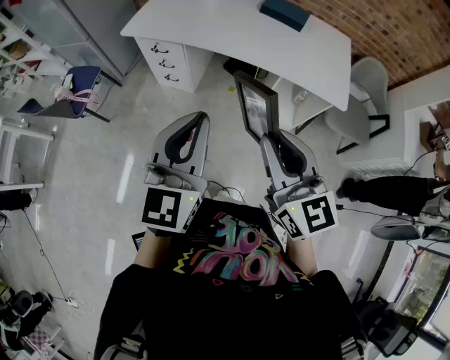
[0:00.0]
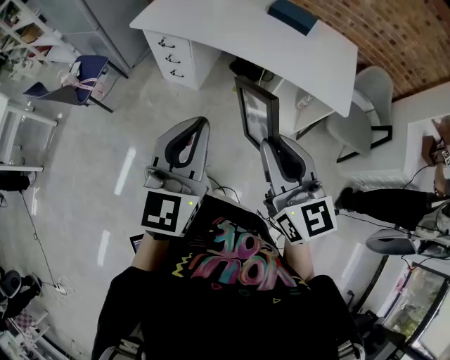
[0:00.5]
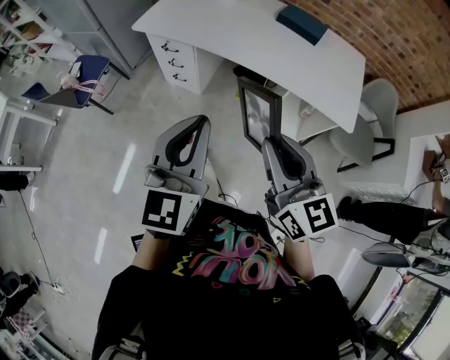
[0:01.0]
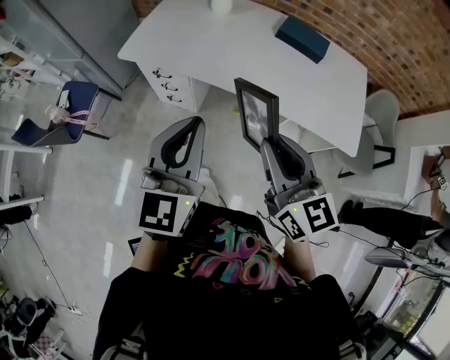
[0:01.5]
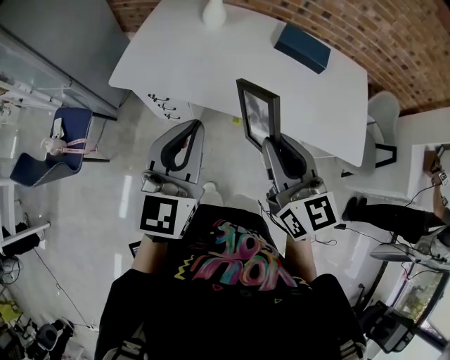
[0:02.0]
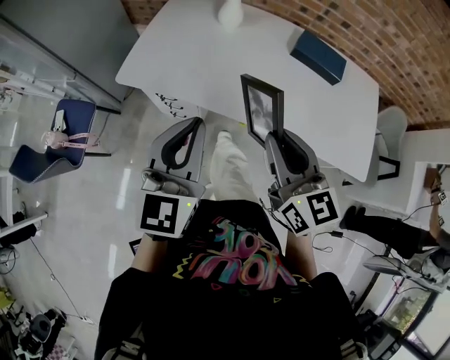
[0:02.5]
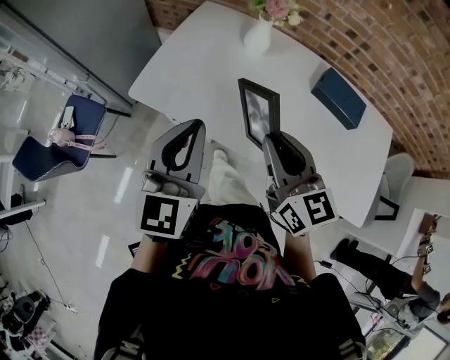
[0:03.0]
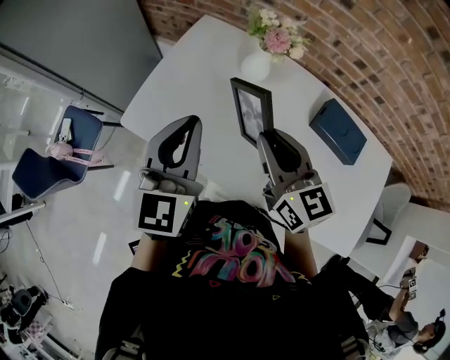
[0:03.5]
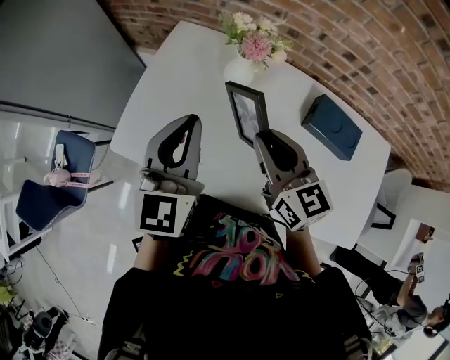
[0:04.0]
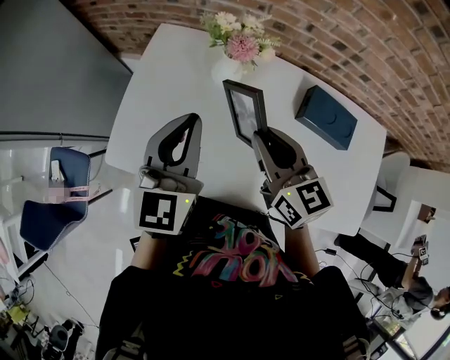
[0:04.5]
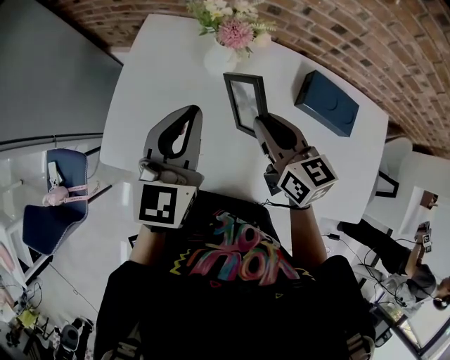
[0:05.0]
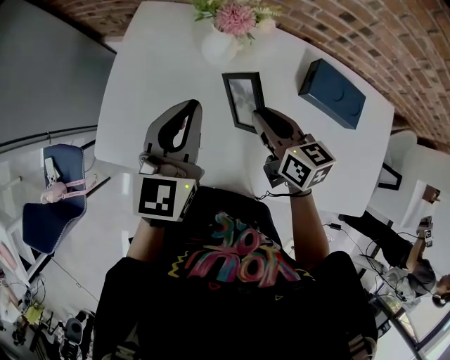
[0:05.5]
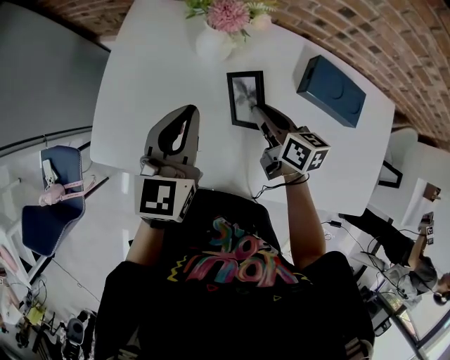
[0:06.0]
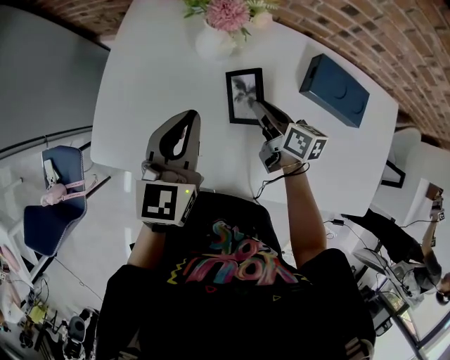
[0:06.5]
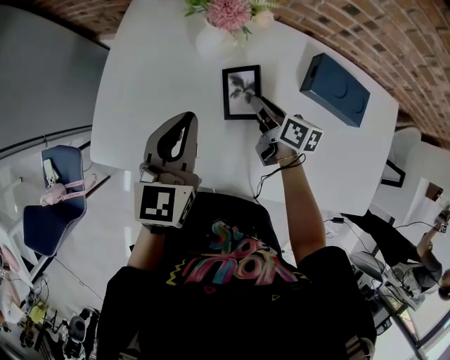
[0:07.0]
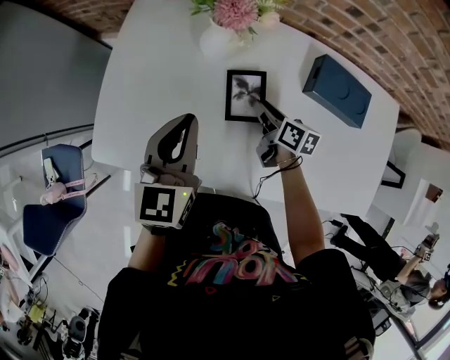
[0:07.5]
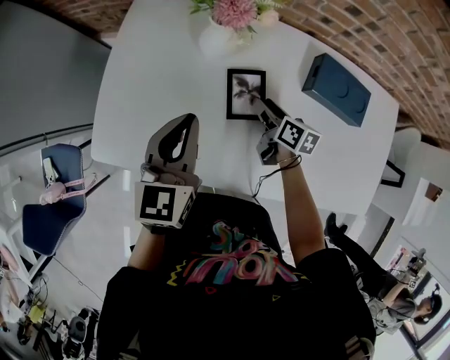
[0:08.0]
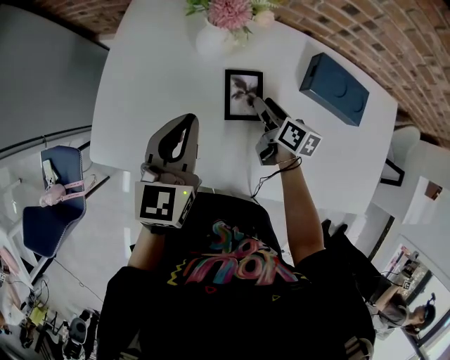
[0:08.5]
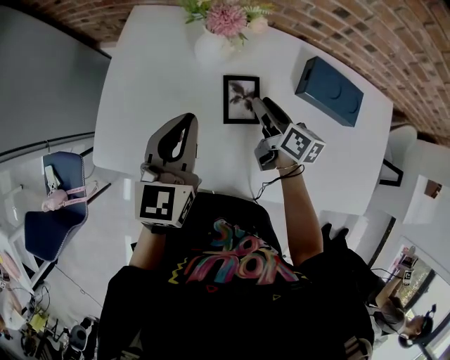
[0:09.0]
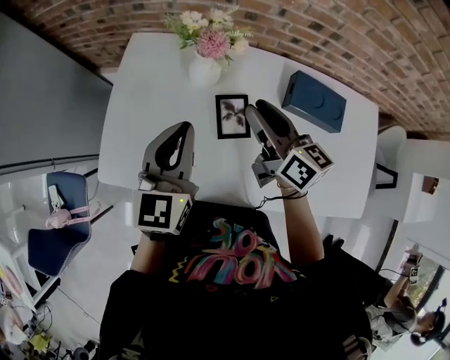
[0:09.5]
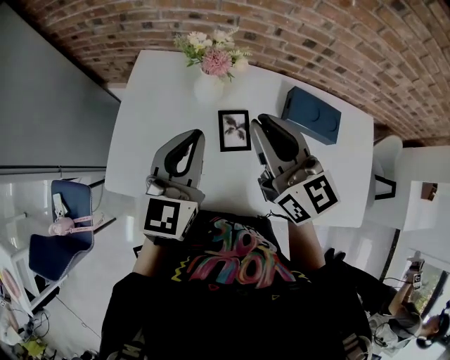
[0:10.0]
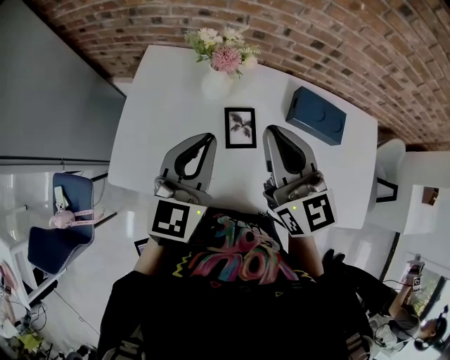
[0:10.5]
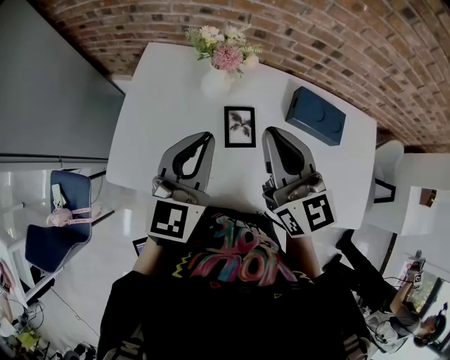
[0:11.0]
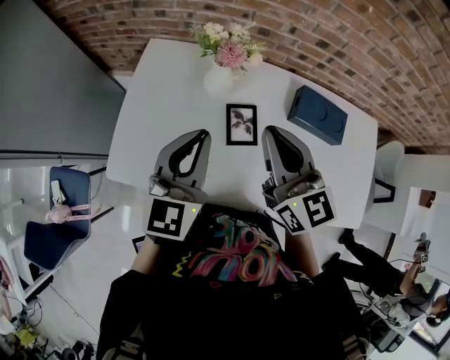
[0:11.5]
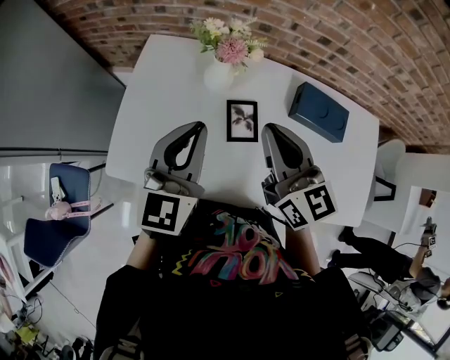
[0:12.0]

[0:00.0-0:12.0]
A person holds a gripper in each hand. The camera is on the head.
0.0 to 2.0 s: The two grippers go some 35 cm forward.
2.0 to 4.0 s: The pair of grippers is taken forward, about 40 cm.
4.0 to 6.0 s: The two grippers go some 15 cm downward. The right gripper turns by roughly 40 degrees.
6.0 to 8.0 s: The right gripper is displaced downward by some 10 cm, and opens its fingers.
8.0 to 10.0 s: The right gripper is displaced upward by some 35 cm, points its fingers roughly 30 degrees further upward, and closes its fingers, while the left gripper is displaced upward by about 15 cm.
10.0 to 12.0 s: The grippers move only a little.

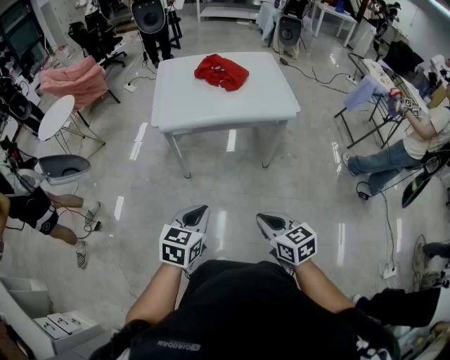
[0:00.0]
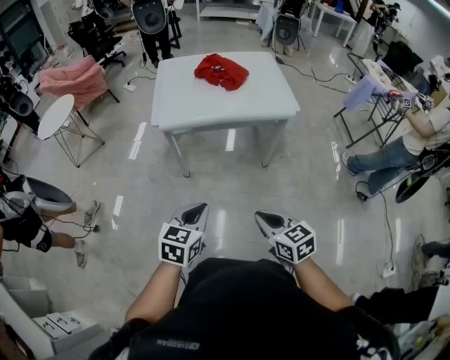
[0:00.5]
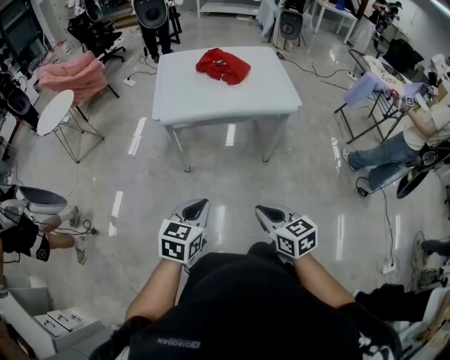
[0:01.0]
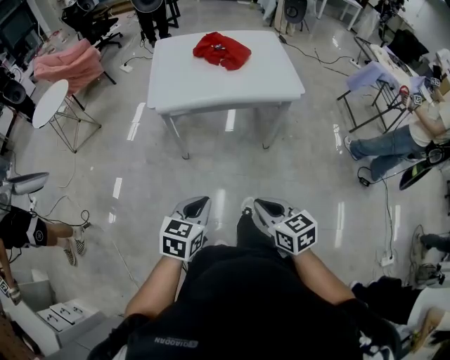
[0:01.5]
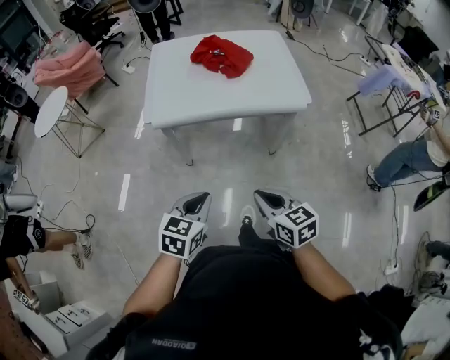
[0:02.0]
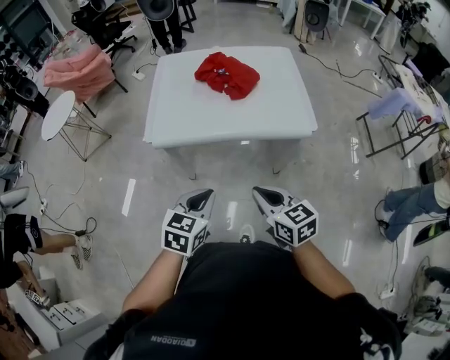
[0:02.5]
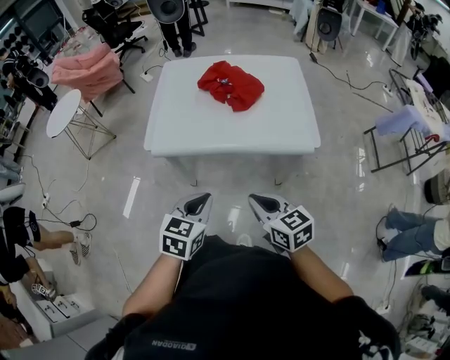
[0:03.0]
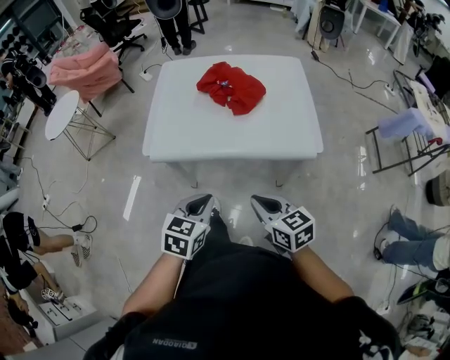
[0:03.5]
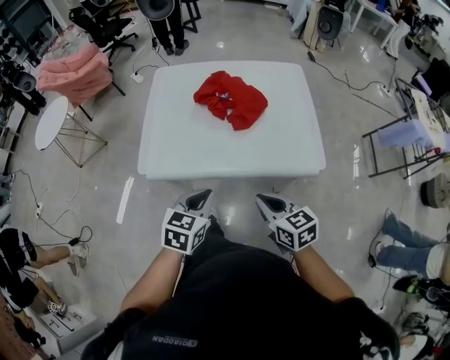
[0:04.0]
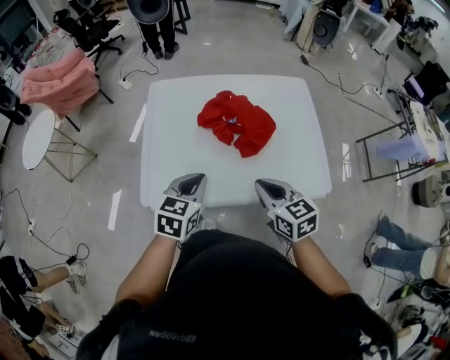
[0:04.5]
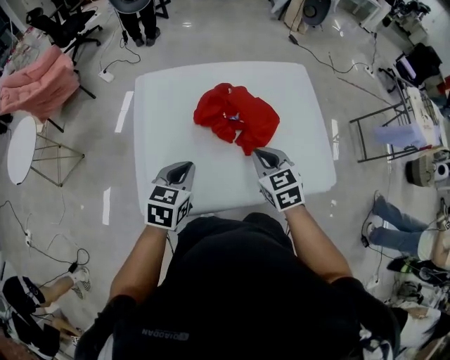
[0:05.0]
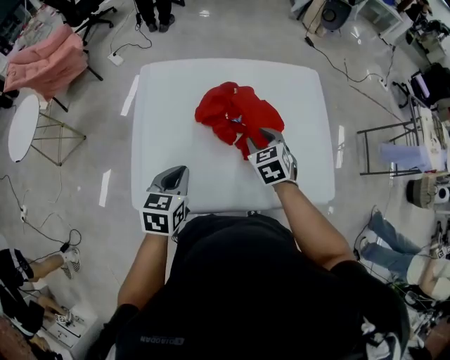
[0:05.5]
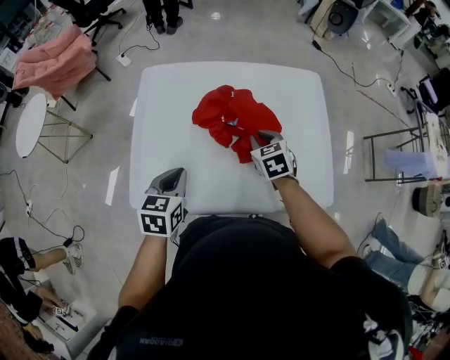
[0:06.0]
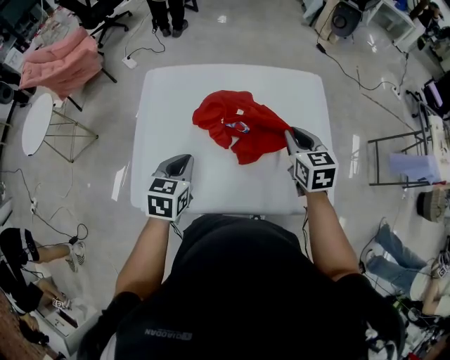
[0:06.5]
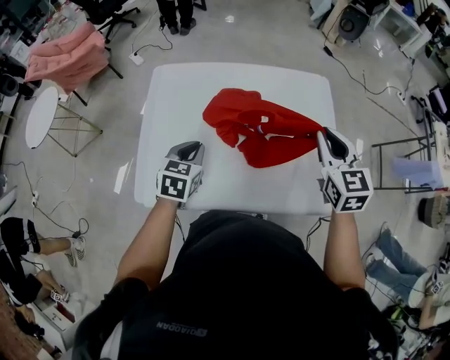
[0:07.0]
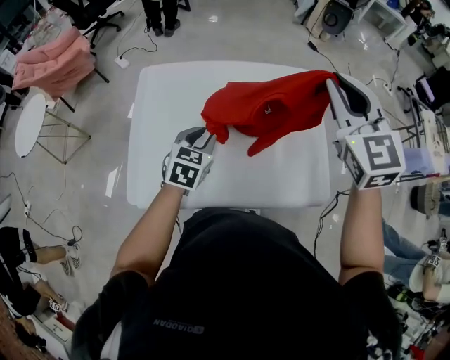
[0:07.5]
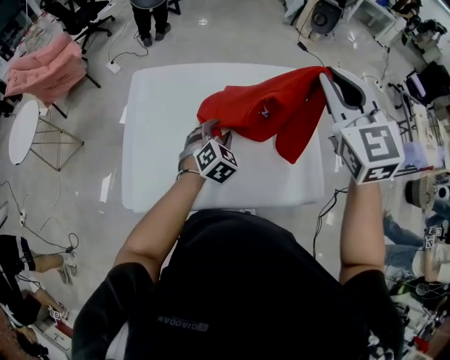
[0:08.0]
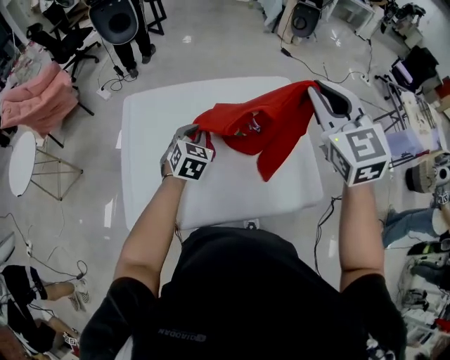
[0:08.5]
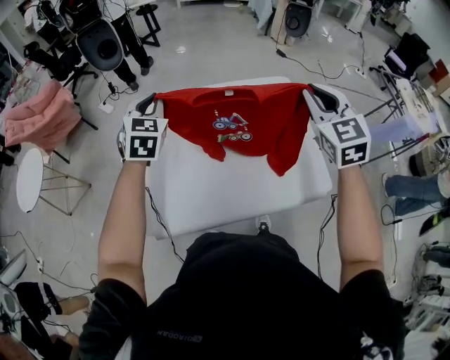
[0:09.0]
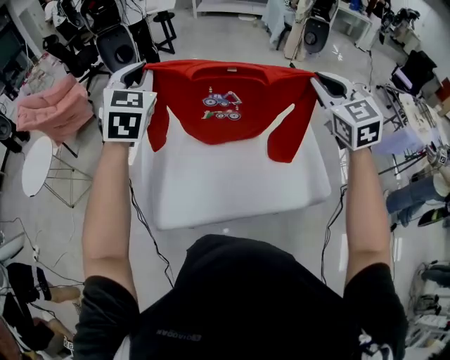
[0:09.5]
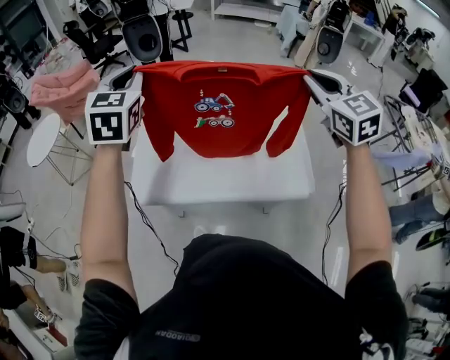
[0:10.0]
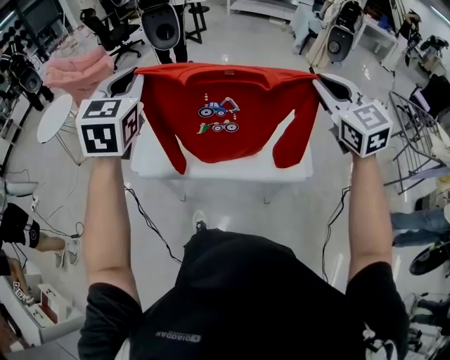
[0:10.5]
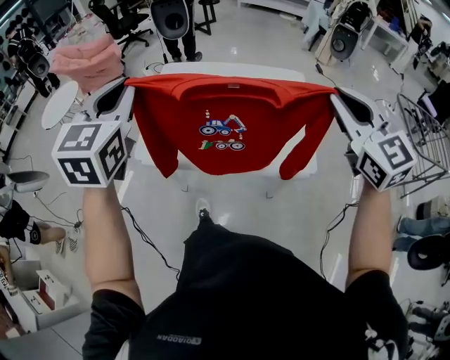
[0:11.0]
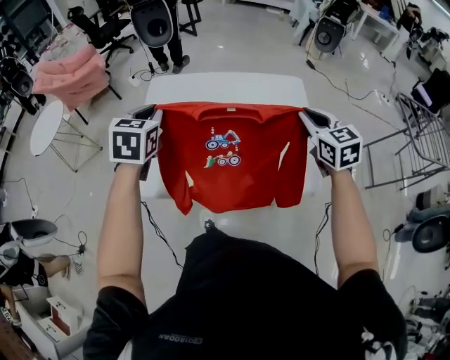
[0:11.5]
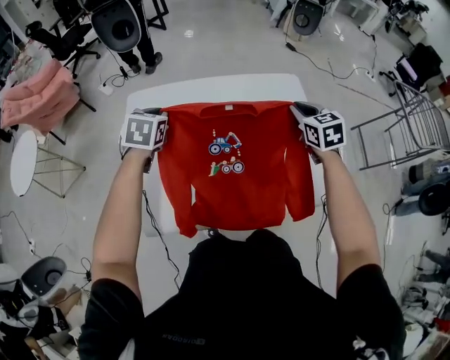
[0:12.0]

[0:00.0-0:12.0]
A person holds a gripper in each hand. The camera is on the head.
0.0 to 2.0 s: Both grippers travel together forward, roughly 10 cm.
2.0 to 4.0 s: The grippers both shift forward by some 25 cm.
4.0 to 6.0 s: The right gripper goes some 35 cm forward, rotates about 30 degrees, and opens, then closes again; the left gripper shifts roughly 25 cm forward and to the left.
6.0 to 8.0 s: The left gripper moves to the right and forward, about 20 cm, rotates around the line of its fingers by some 40 degrees, clockwise from behind, and opens up; the right gripper goes approximately 35 cm upward, and tilts its fingers approximately 30 degrees upward.
8.0 to 10.0 s: The left gripper moves upward and to the left, some 40 cm, changes its angle by some 30 degrees, and closes, while the right gripper moves backward, about 5 cm.
10.0 to 12.0 s: Both grippers move downward and forward, some 30 cm. The right gripper swivels about 30 degrees; the left gripper tips its fingers downward by some 30 degrees.

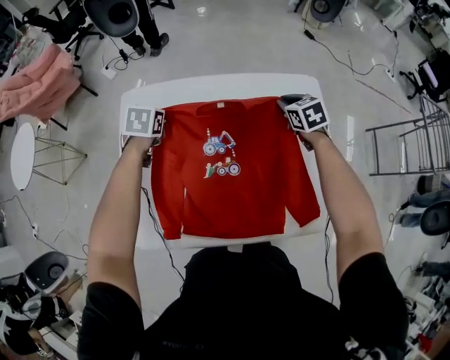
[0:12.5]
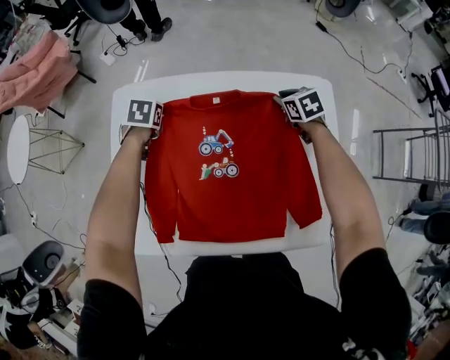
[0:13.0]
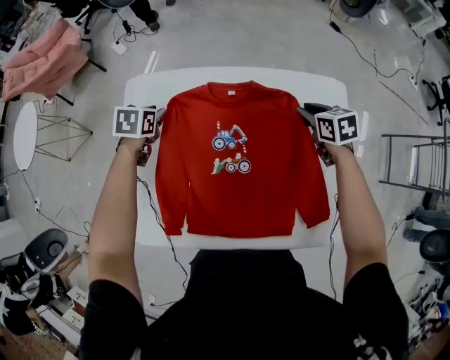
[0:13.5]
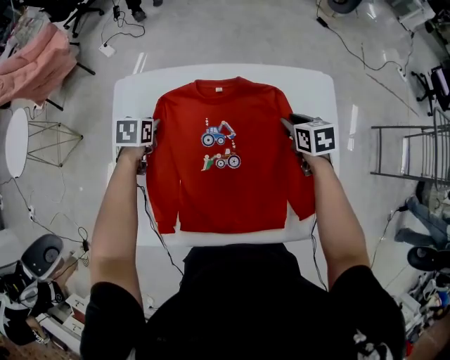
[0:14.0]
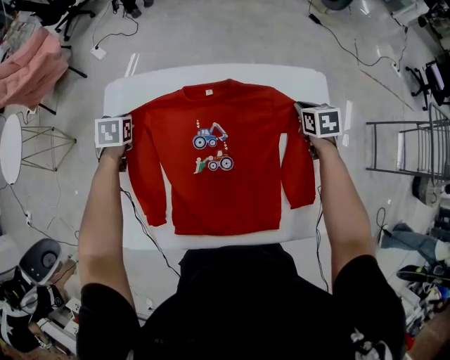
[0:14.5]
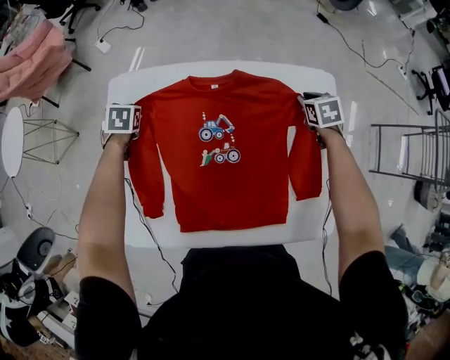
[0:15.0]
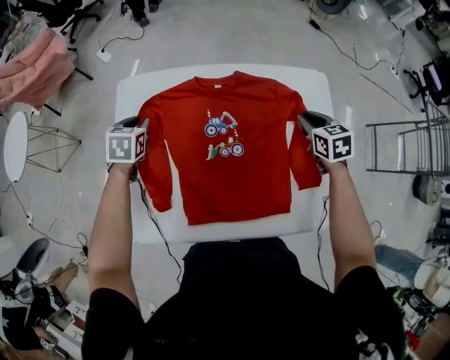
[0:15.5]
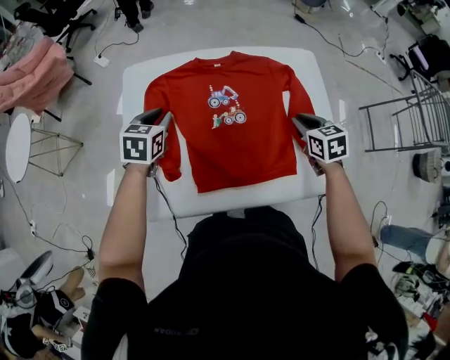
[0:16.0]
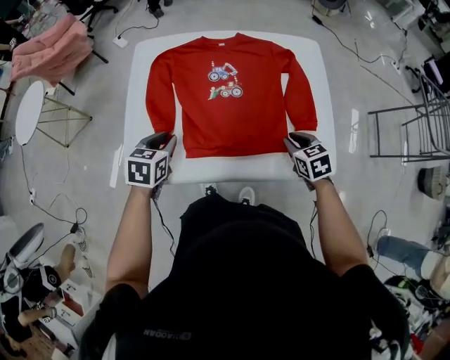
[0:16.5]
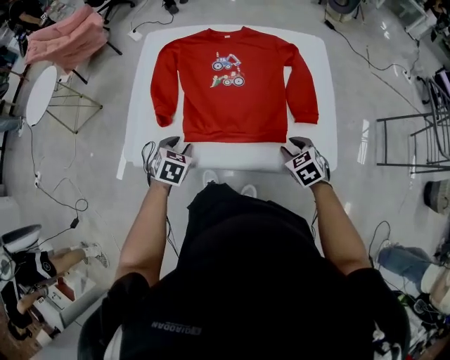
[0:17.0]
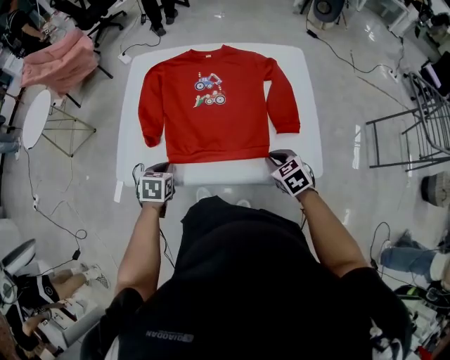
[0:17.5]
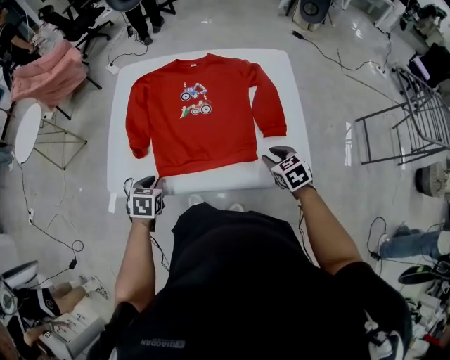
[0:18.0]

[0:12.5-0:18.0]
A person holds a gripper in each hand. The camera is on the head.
12.5 to 14.5 s: The left gripper heads to the left and downward, covering approximately 10 cm. The right gripper swings forward and backward, approximately 10 cm each way, with 2 reversals.
14.5 to 16.0 s: The left gripper heads backward, upward and to the right, covering about 20 cm, and changes its angle by roughly 30 degrees. Meanwhile the right gripper moves backward, to the left and upward, some 20 cm.
16.0 to 18.0 s: The left gripper goes about 25 cm backward. Meanwhile the right gripper shifts approximately 15 cm backward and downward.
